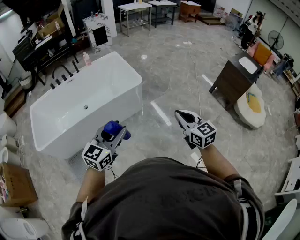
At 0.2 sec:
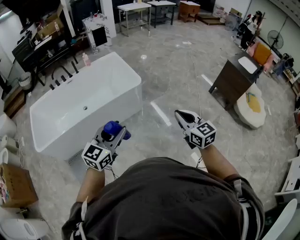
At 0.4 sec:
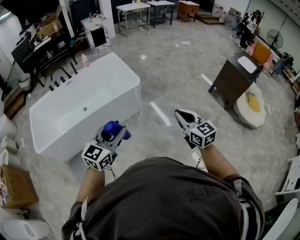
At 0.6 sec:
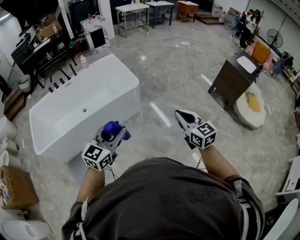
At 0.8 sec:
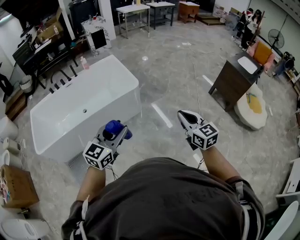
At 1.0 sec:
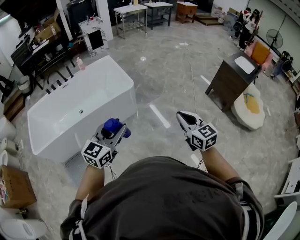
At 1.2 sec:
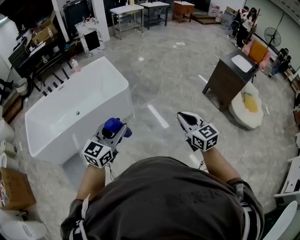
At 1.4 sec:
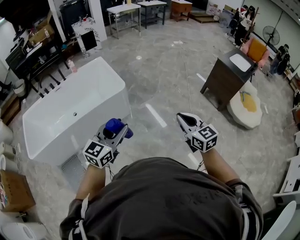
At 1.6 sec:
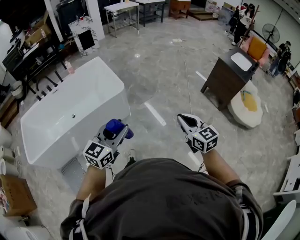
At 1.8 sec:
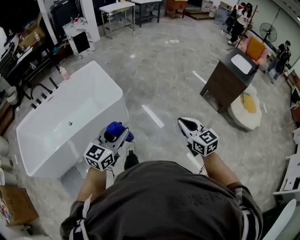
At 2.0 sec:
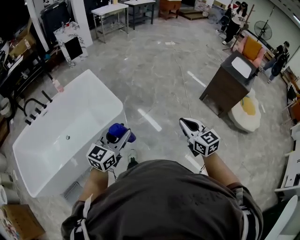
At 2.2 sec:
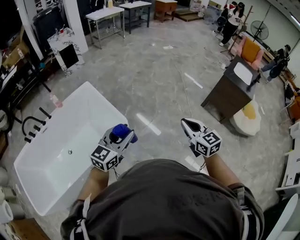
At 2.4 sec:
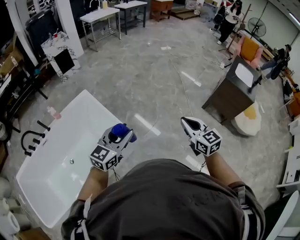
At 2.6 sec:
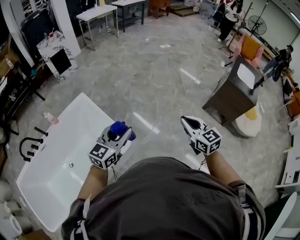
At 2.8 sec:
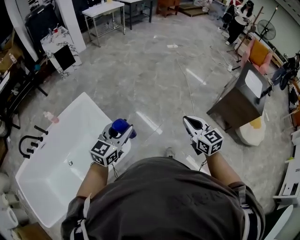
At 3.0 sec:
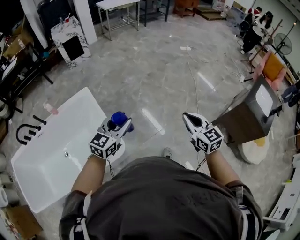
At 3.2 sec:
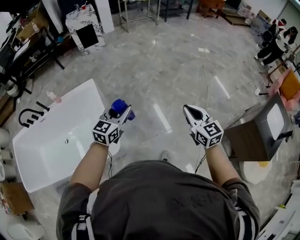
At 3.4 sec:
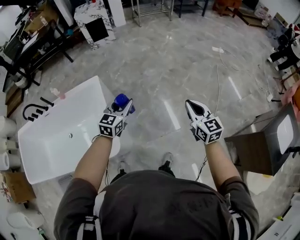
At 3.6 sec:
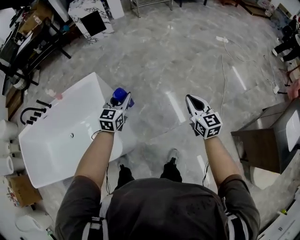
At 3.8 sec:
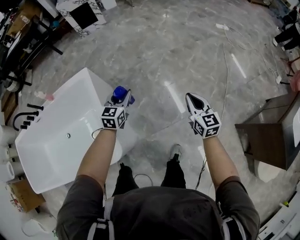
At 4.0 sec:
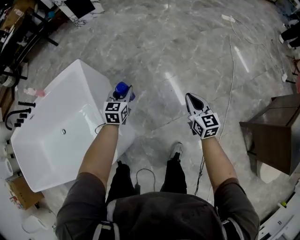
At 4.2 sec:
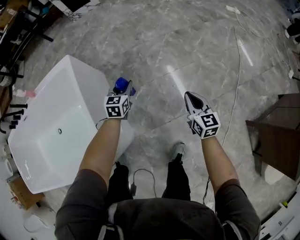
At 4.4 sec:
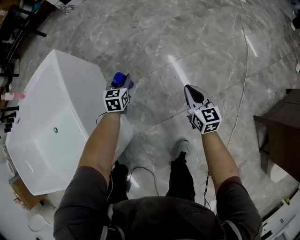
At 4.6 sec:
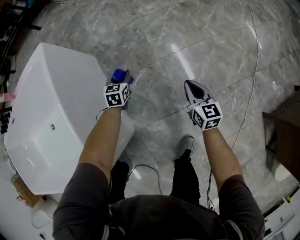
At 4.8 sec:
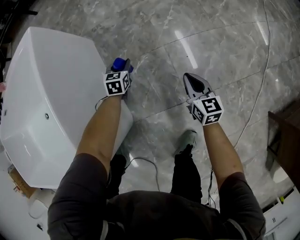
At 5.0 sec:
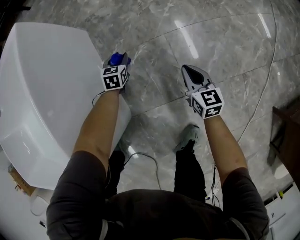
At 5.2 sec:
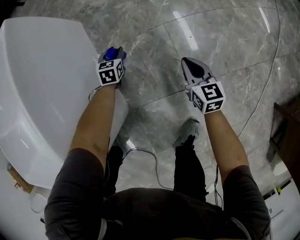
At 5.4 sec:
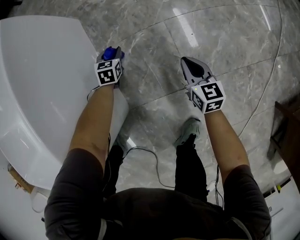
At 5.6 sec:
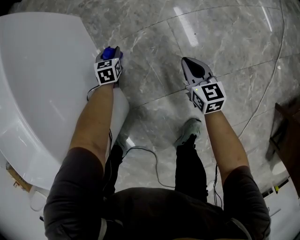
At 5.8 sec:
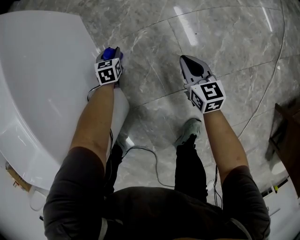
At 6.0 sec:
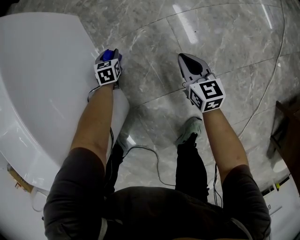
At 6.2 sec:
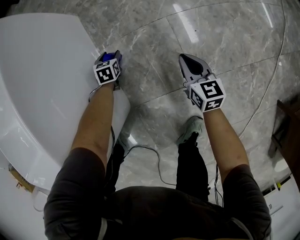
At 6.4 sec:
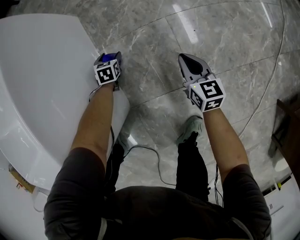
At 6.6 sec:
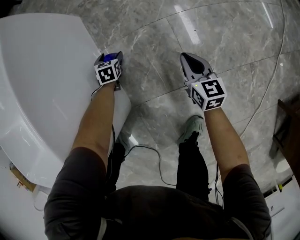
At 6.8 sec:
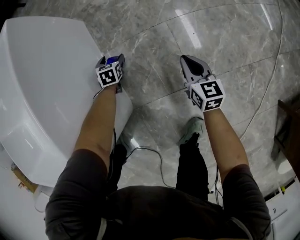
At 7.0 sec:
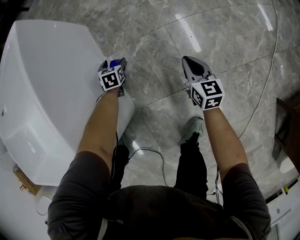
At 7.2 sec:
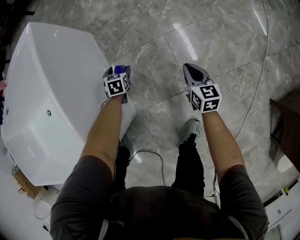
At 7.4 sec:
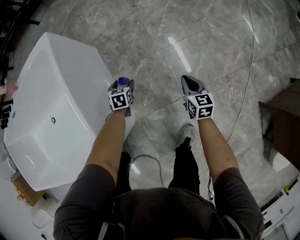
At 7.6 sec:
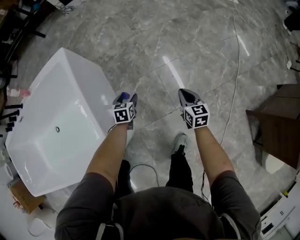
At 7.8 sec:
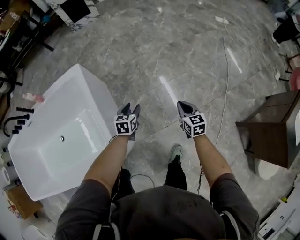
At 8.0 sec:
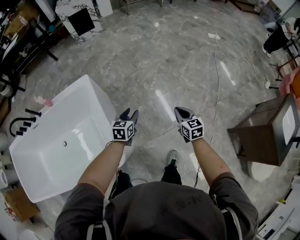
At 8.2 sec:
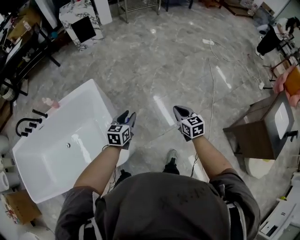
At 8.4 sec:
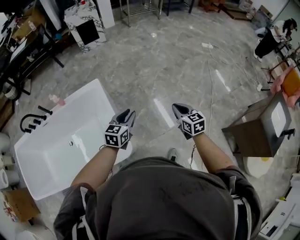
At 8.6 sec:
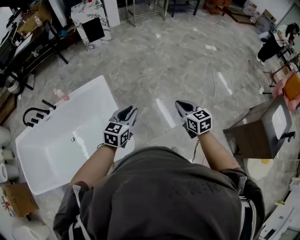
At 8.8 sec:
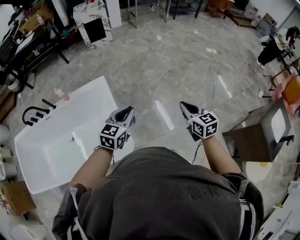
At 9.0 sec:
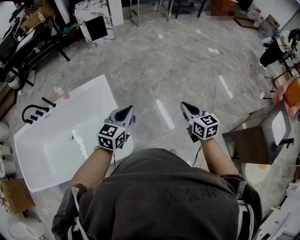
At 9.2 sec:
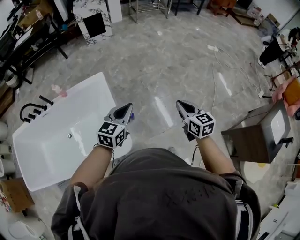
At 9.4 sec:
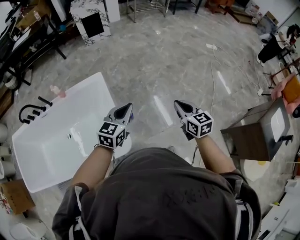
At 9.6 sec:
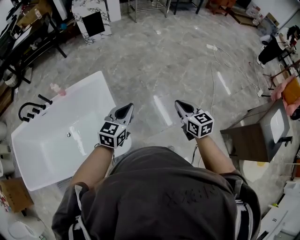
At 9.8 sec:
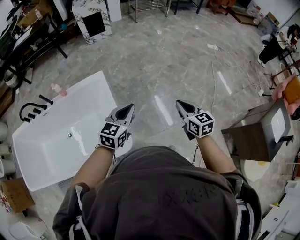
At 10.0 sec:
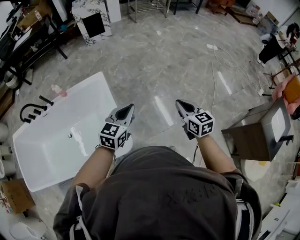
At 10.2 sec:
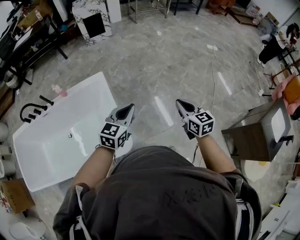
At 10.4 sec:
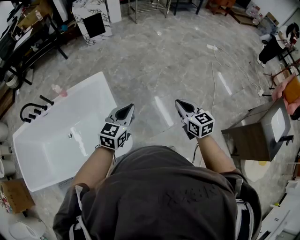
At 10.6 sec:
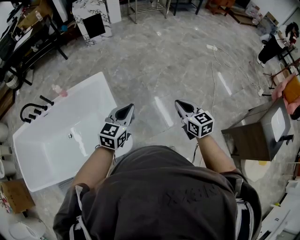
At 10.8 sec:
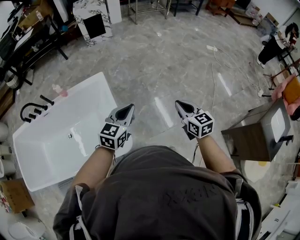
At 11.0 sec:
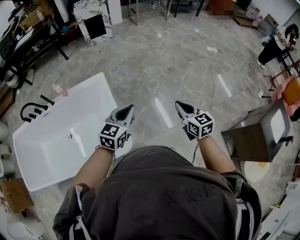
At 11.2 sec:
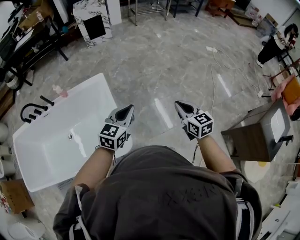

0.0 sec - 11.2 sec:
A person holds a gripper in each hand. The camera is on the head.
0.0 sec - 1.6 sec: The grippers both shift to the right and forward by roughly 20 cm.
1.6 sec - 3.2 sec: The two grippers travel together, forward, about 80 cm.
3.2 sec - 4.8 sec: The two grippers go about 70 cm downward. The left gripper points its fingers some 30 degrees further downward, while the right gripper turns by approximately 20 degrees.
4.8 sec - 6.4 sec: The left gripper travels downward and to the left by some 20 cm, and opens, while the right gripper moves downward, some 10 cm.
6.4 sec - 8.0 sec: The grippers both shift upward by about 60 cm. The left gripper changes its angle by roughly 30 degrees.
8.0 sec - 9.6 sec: The grippers both shift upward by approximately 25 cm. The left gripper swivels some 20 degrees, and closes.
9.6 sec - 11.2 sec: The grippers make only small movements.

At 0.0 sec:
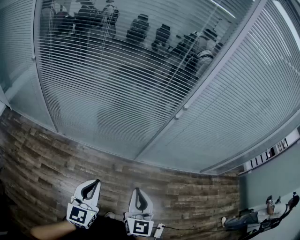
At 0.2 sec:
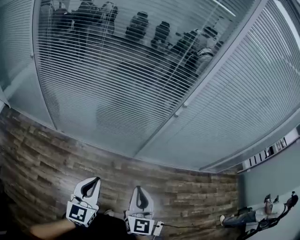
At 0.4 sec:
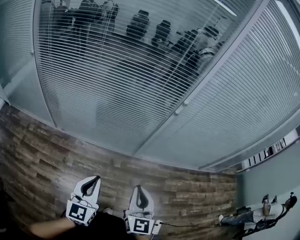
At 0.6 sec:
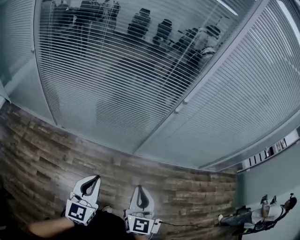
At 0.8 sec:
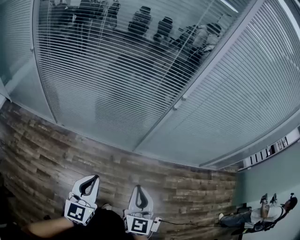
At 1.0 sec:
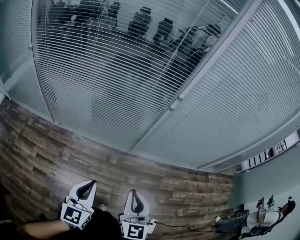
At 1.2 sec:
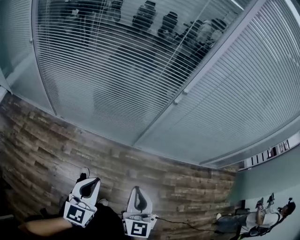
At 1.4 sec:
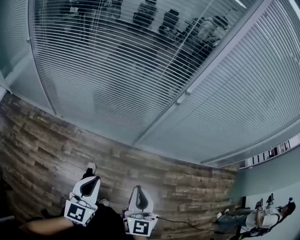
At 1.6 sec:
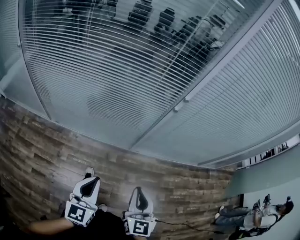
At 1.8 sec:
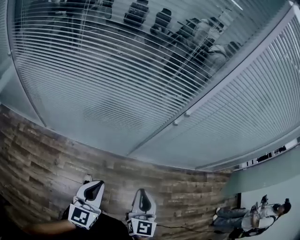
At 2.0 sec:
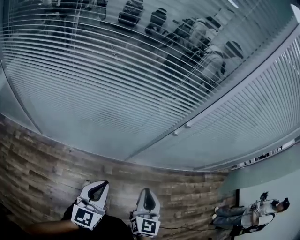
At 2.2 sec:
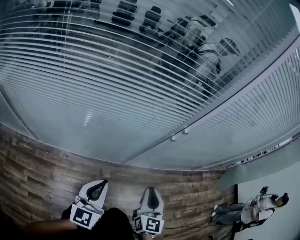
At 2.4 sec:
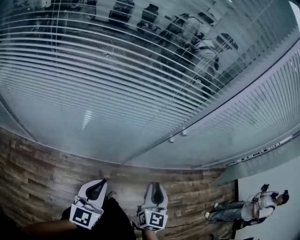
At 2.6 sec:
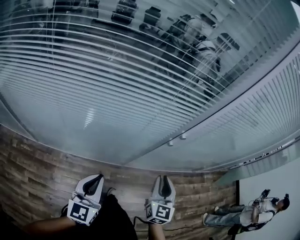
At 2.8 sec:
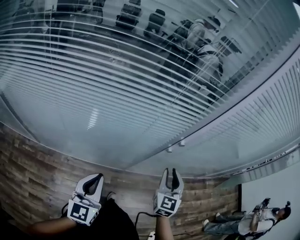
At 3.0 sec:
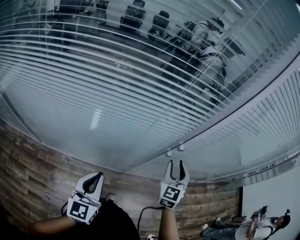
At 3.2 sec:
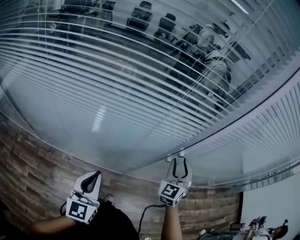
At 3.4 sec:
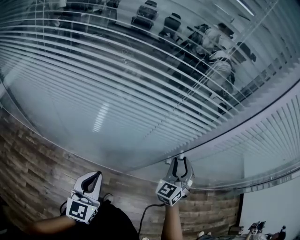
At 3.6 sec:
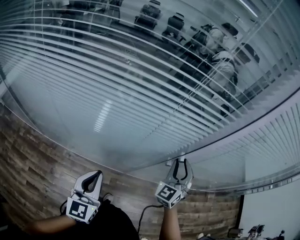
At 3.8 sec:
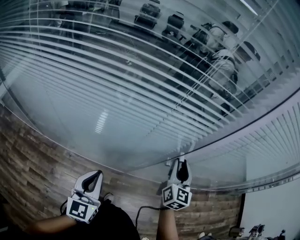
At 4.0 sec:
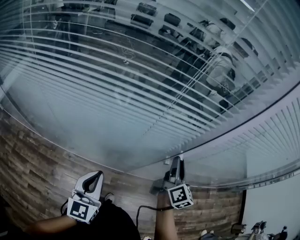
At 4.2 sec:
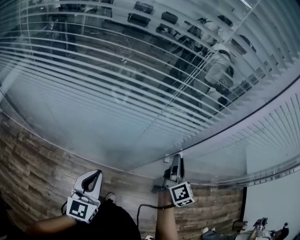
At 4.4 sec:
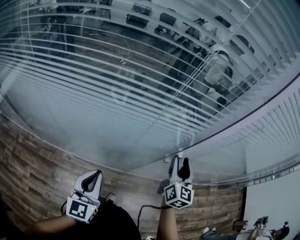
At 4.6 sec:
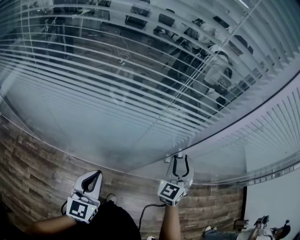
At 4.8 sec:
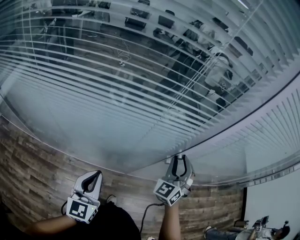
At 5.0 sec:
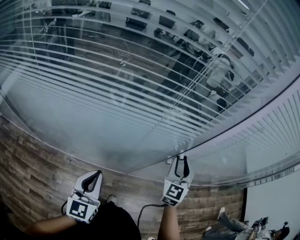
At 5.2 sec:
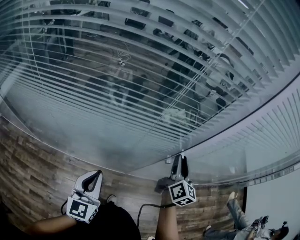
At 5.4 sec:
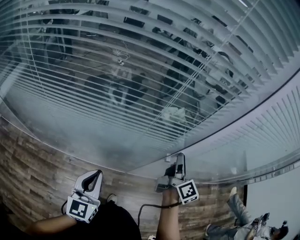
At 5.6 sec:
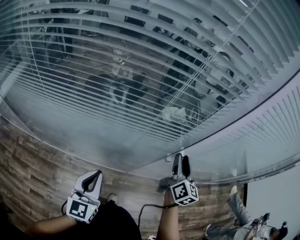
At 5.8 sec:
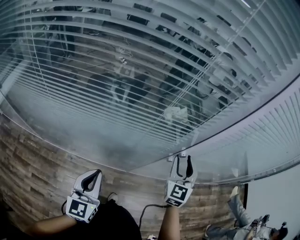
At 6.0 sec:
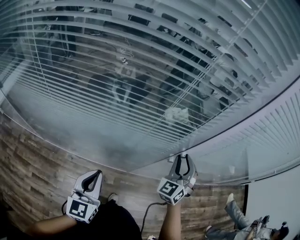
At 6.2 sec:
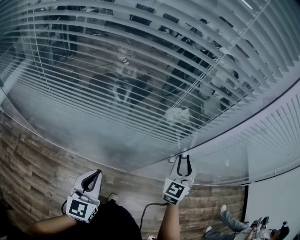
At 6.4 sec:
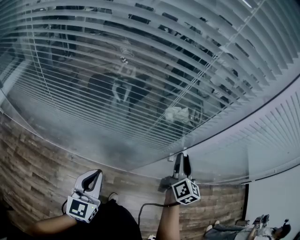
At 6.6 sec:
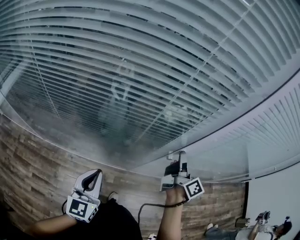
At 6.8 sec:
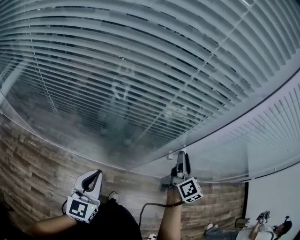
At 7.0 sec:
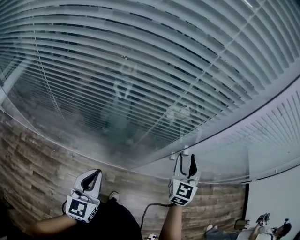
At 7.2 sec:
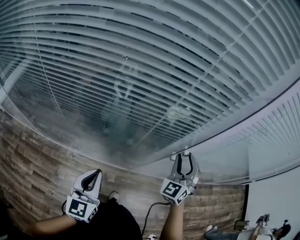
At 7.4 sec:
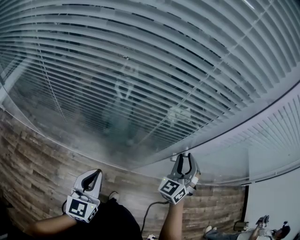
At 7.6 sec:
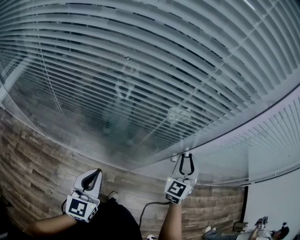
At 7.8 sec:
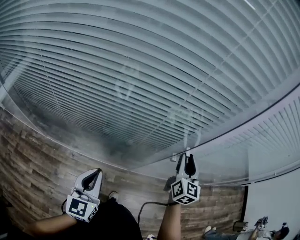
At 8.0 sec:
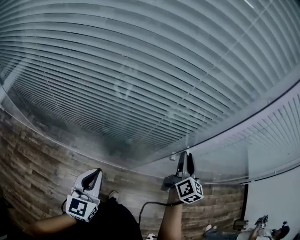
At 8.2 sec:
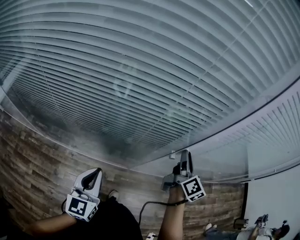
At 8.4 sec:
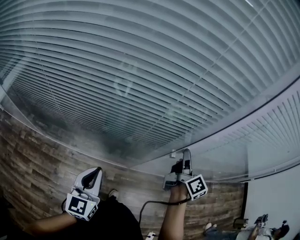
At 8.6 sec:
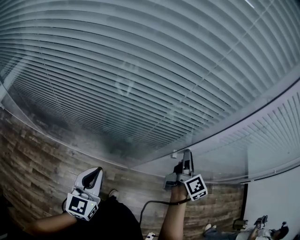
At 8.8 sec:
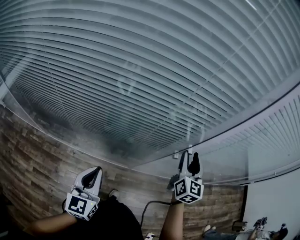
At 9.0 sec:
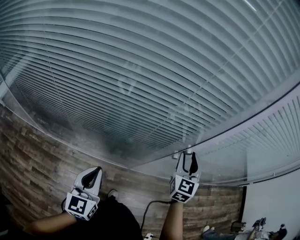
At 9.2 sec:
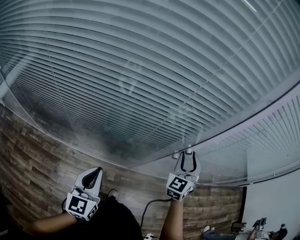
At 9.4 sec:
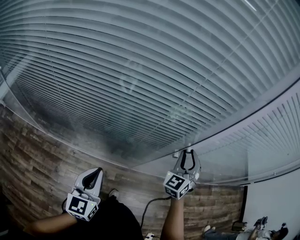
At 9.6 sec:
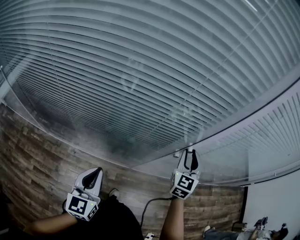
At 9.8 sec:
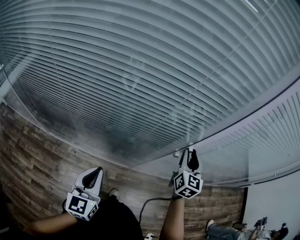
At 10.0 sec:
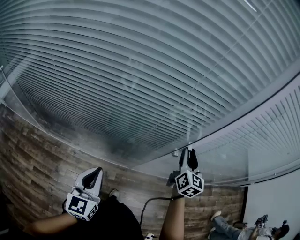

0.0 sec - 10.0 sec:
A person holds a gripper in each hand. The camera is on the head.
0.0 sec - 1.4 sec: Both grippers travel together downward, approximately 5 cm.
1.4 sec - 2.8 sec: Both grippers move forward, roughly 30 cm. The right gripper turns by some 20 degrees, and opens.
2.8 sec - 4.2 sec: The left gripper moves forward and to the right, about 10 cm. Meanwhile the right gripper moves forward and to the right, about 15 cm, and twists approximately 60 degrees clockwise, seen from behind.
4.2 sec - 5.8 sec: The right gripper rotates around the line of its fingers by about 60 degrees, counterclockwise from behind.
5.8 sec - 7.2 sec: The right gripper changes its angle by some 30 degrees.
7.2 sec - 8.6 sec: The right gripper rolls clockwise, seen from behind, by about 90 degrees.
8.6 sec - 10.0 sec: The right gripper rotates roughly 40 degrees.

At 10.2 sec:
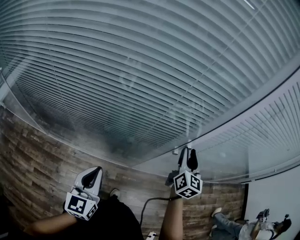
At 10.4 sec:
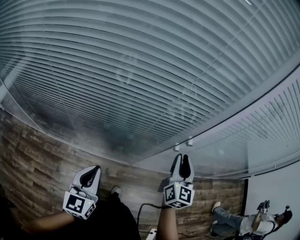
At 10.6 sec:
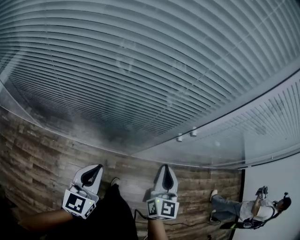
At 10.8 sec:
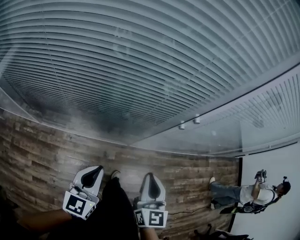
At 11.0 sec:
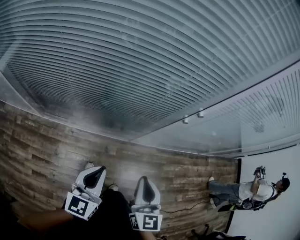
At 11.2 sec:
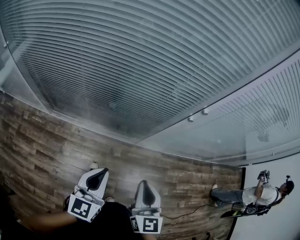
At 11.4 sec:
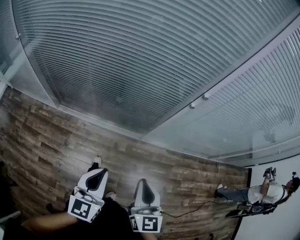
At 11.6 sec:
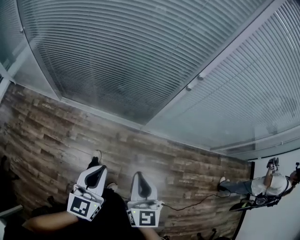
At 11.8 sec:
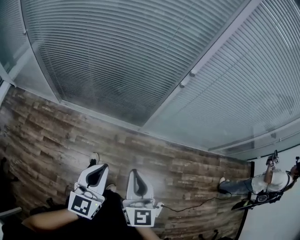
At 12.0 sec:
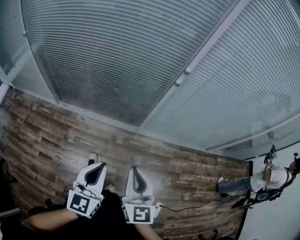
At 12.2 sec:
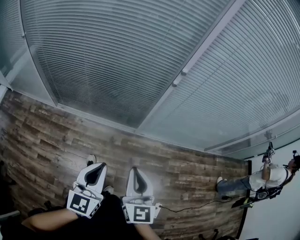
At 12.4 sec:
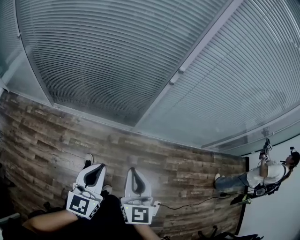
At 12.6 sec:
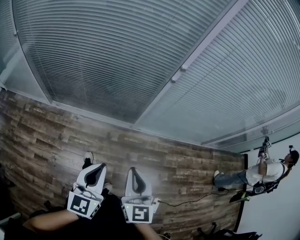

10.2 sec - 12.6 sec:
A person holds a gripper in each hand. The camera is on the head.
10.2 sec - 11.4 sec: The right gripper travels backward by roughly 40 cm, and closes. The left gripper travels backward by some 25 cm.
11.4 sec - 12.6 sec: The left gripper heads backward and to the right, covering some 10 cm, while the right gripper is displaced backward by roughly 10 cm.
